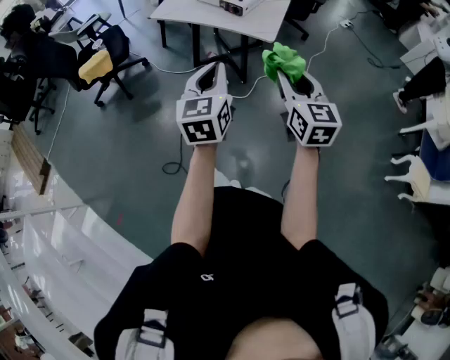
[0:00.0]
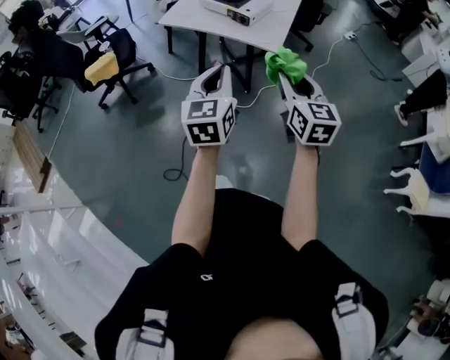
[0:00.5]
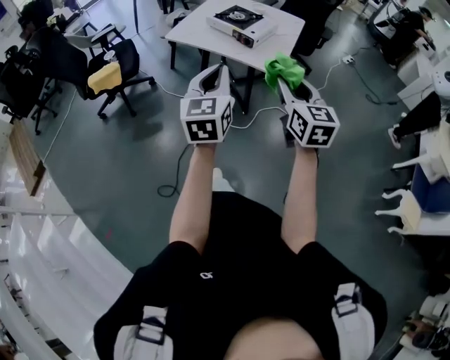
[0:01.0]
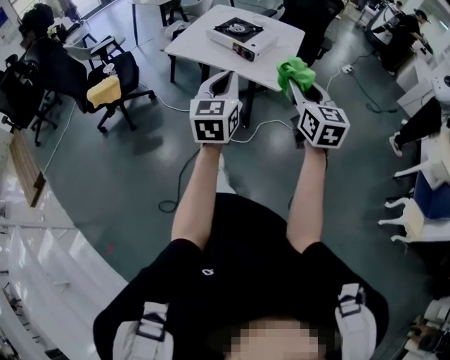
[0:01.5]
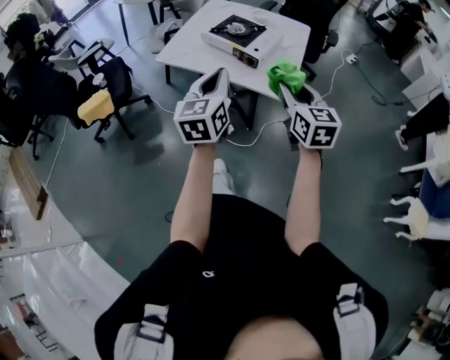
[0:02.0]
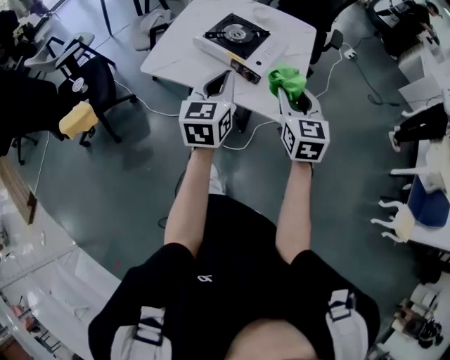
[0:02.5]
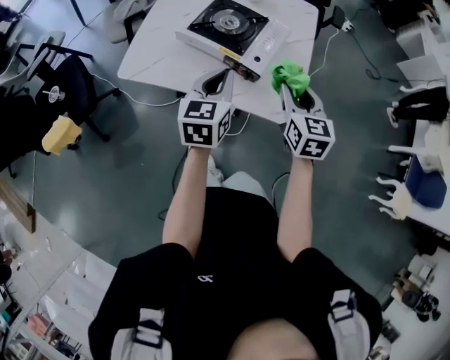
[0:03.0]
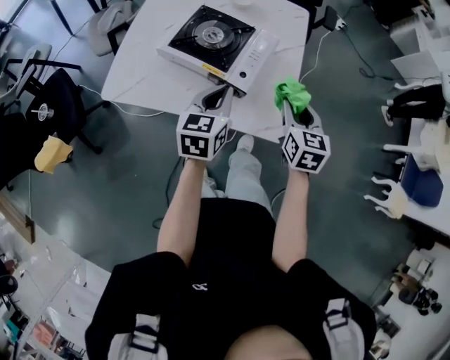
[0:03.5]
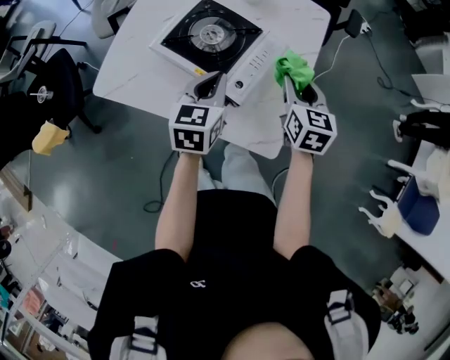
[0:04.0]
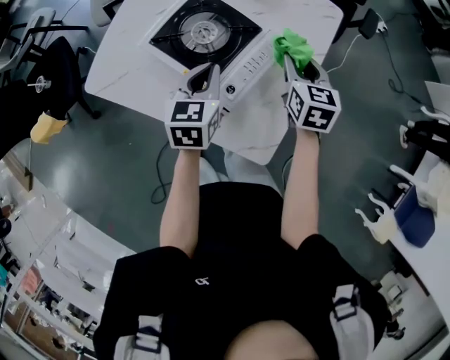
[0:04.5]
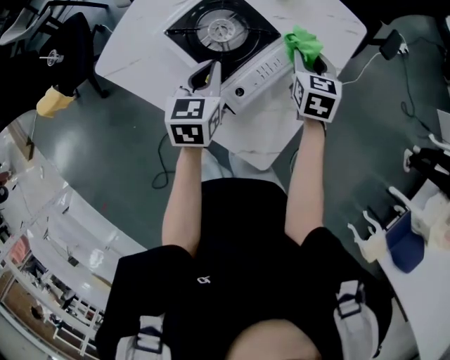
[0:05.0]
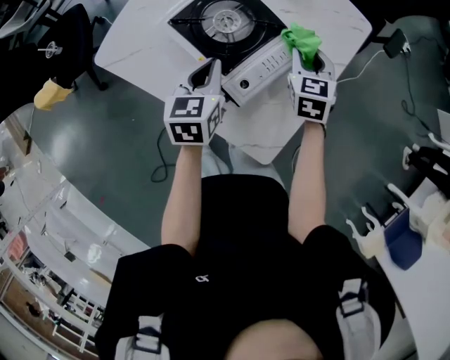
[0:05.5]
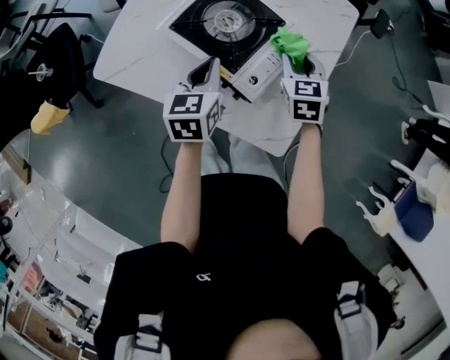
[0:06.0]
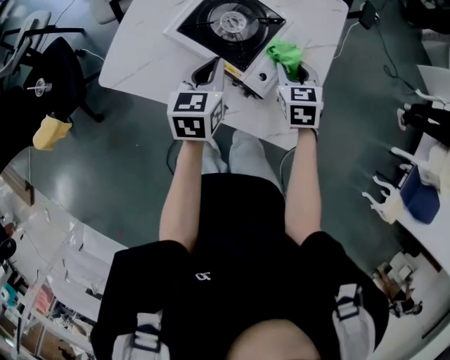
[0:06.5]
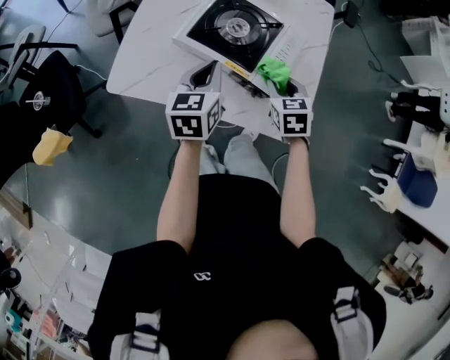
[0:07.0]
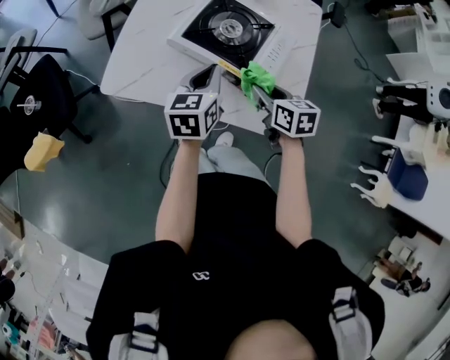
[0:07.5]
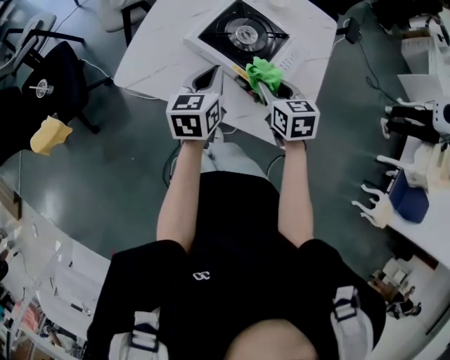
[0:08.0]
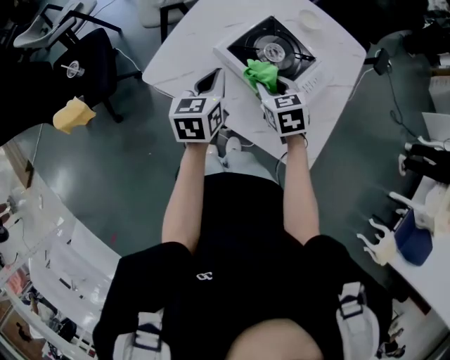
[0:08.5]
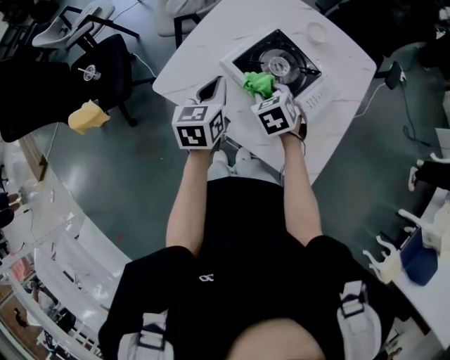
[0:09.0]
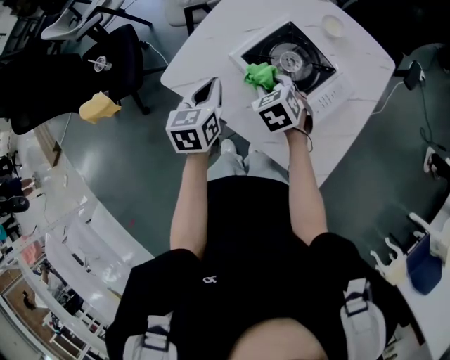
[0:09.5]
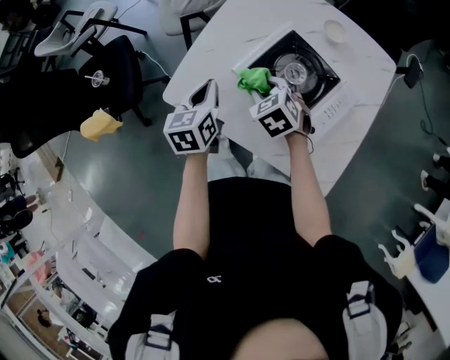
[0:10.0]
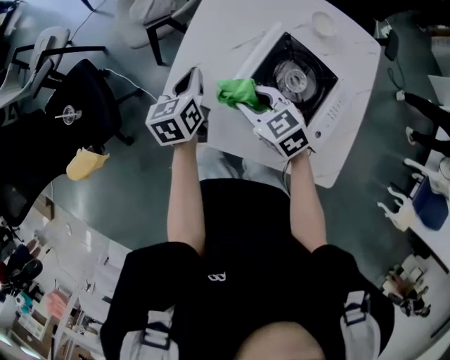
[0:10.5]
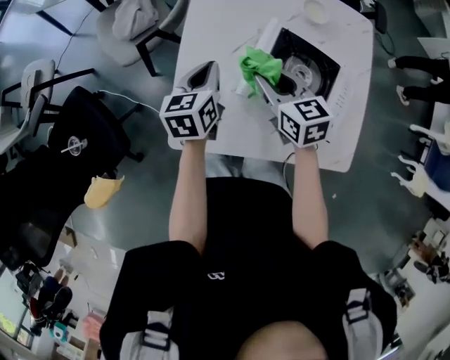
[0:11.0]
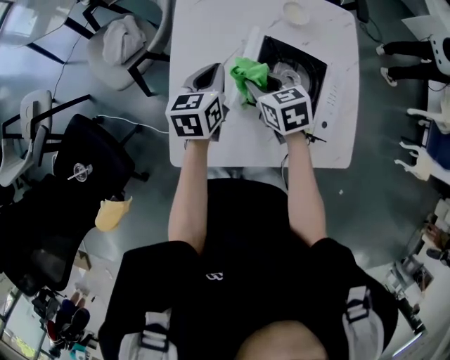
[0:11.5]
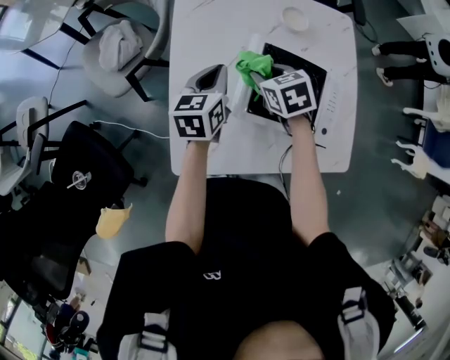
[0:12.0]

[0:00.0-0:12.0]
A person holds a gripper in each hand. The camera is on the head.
0:00.0 to 0:02.0: Both grippers travel together forward, some 25 cm.
0:02.0 to 0:04.0: The right gripper is displaced forward by some 40 cm, and rotates some 20 degrees. Meanwhile the left gripper heads forward and downward, covering approximately 40 cm, and swivels about 30 degrees.
0:04.0 to 0:06.0: The left gripper travels to the left by about 5 cm, while the right gripper moves downward, forward and to the left, roughly 10 cm, and rotates about 20 degrees.
0:06.0 to 0:08.0: The right gripper moves backward and to the left, some 15 cm; the left gripper is displaced to the left by approximately 5 cm.
0:08.0 to 0:10.0: The grippers both shift to the left and forward by roughly 15 cm. The right gripper changes its angle by about 30 degrees.
0:10.0 to 0:12.0: The right gripper shifts by some 15 cm, and turns by roughly 40 degrees. The left gripper moves some 20 cm, and rotates approximately 40 degrees.

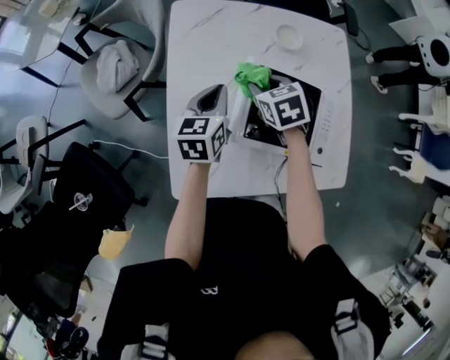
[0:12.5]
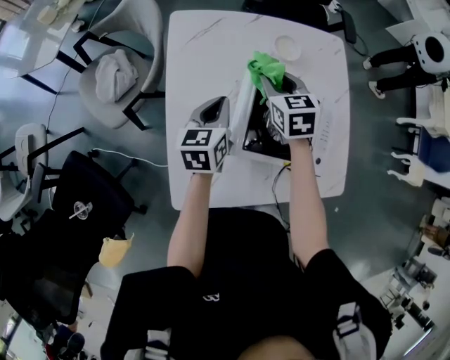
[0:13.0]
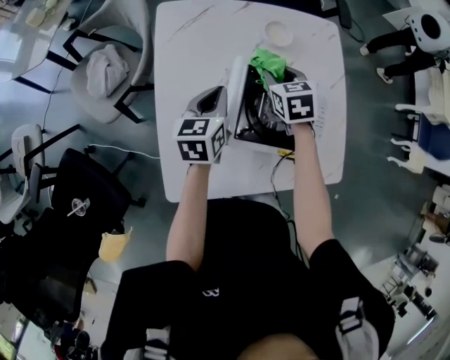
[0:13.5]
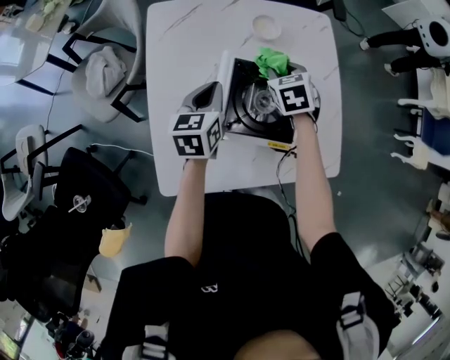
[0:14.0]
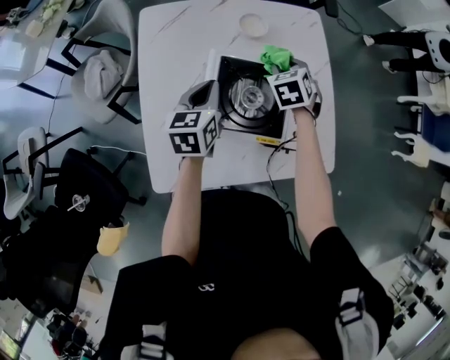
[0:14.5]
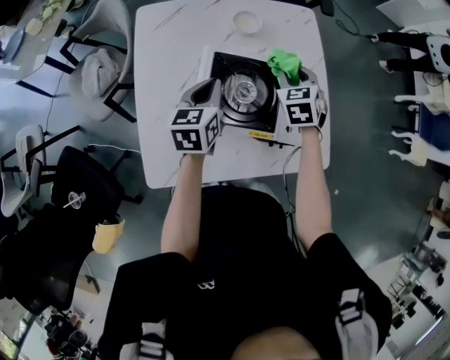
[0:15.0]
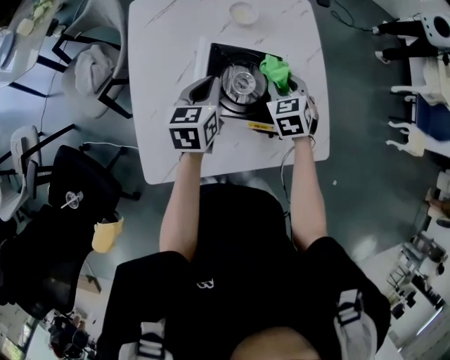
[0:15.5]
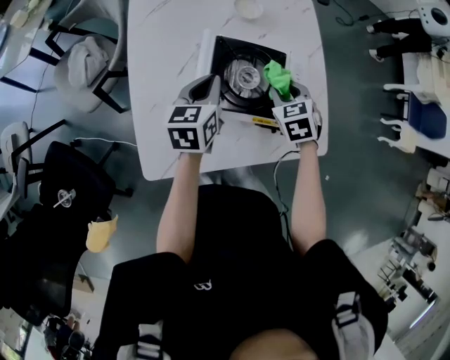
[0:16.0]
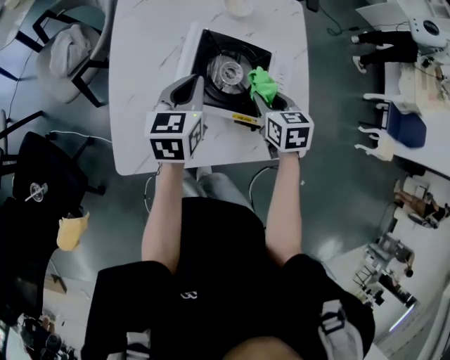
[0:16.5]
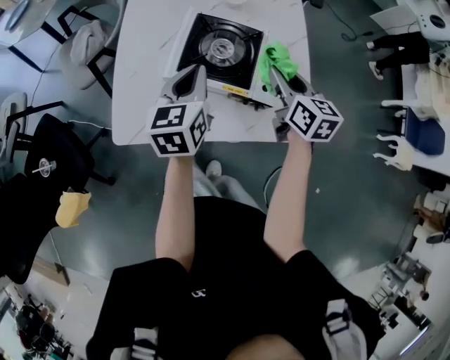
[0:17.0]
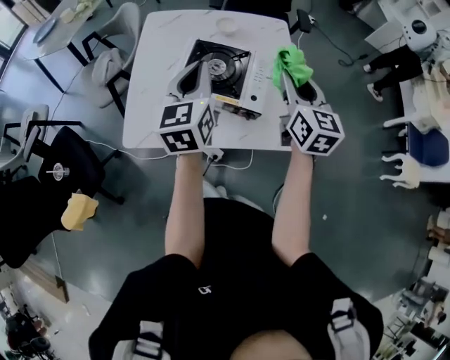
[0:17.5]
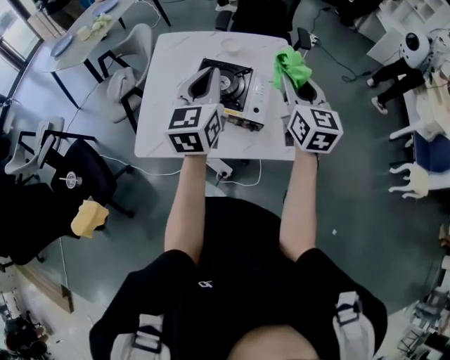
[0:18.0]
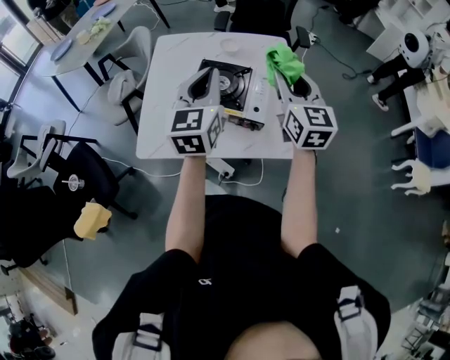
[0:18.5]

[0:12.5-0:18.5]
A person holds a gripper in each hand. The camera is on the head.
0:12.5 to 0:14.5: The right gripper goes approximately 20 cm to the right, and turns by about 20 degrees; the left gripper heads to the right, covering roughly 10 cm.
0:14.5 to 0:16.5: The right gripper moves backward, approximately 15 cm, and rotates approximately 20 degrees, while the left gripper shifts roughly 5 cm backward.
0:16.5 to 0:18.5: The left gripper moves upward and backward, roughly 25 cm, and turns by some 30 degrees. The right gripper shifts about 25 cm upward, and angles its fingers upward, by about 50 degrees.

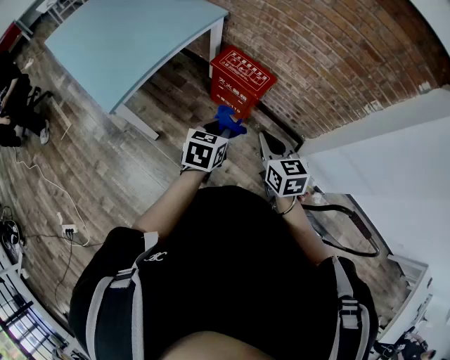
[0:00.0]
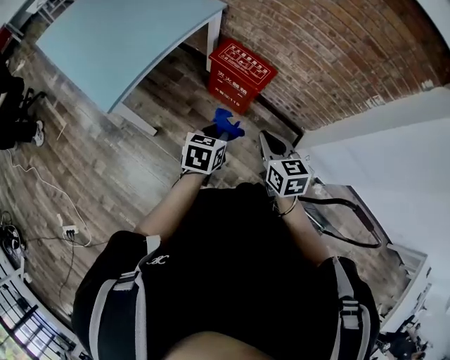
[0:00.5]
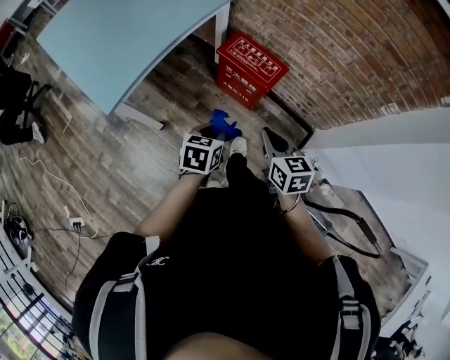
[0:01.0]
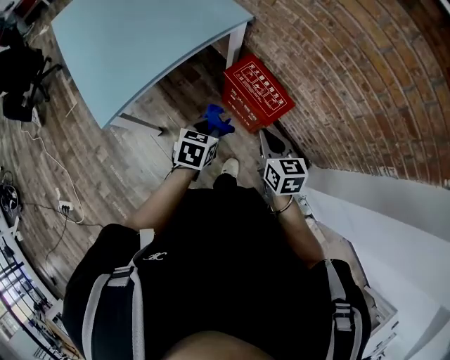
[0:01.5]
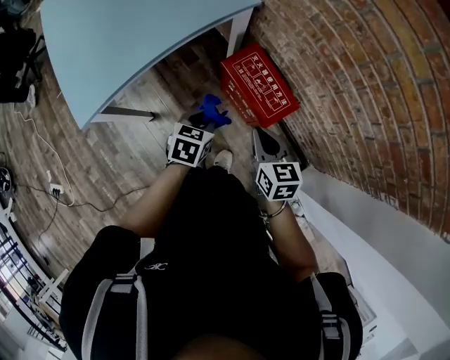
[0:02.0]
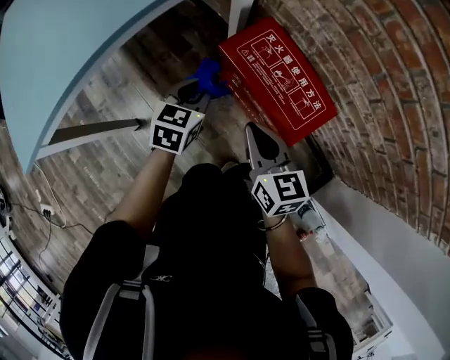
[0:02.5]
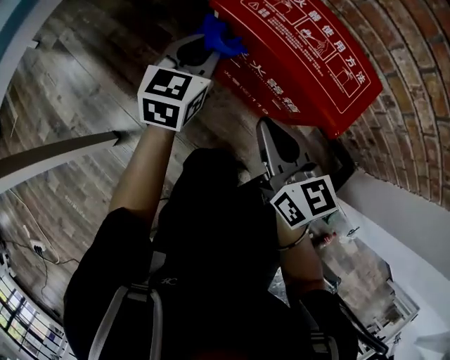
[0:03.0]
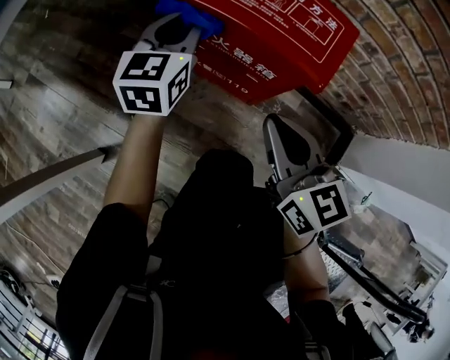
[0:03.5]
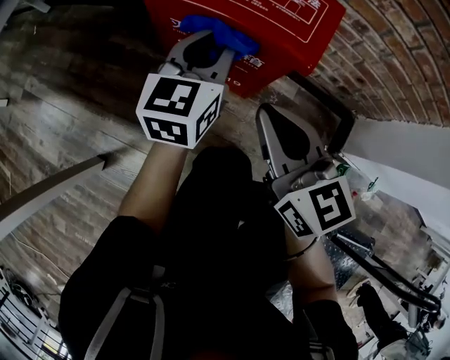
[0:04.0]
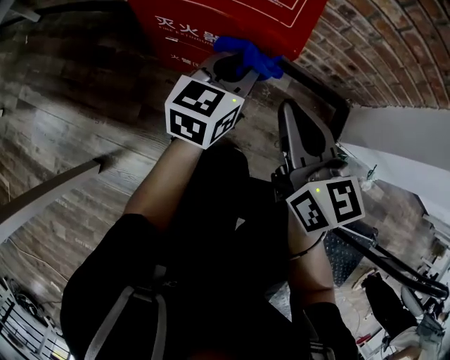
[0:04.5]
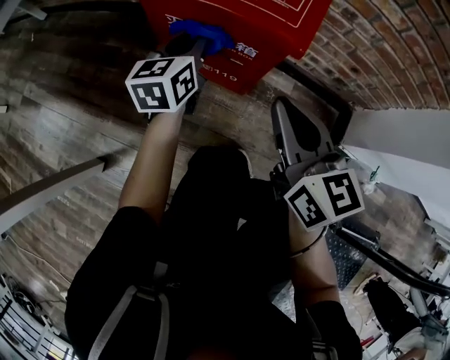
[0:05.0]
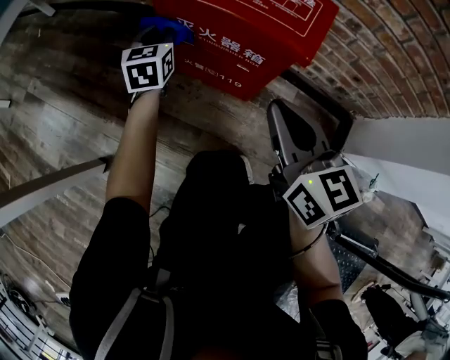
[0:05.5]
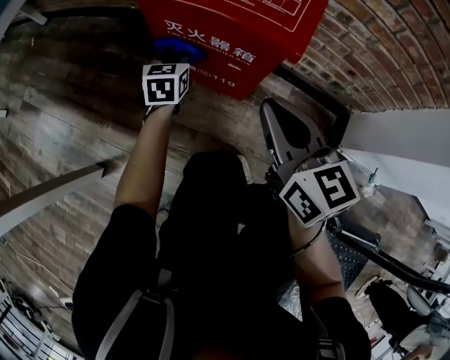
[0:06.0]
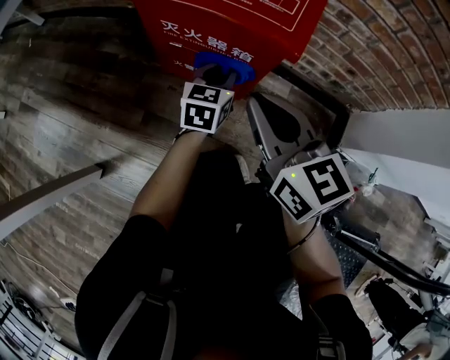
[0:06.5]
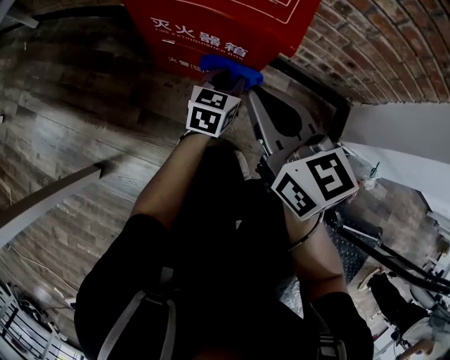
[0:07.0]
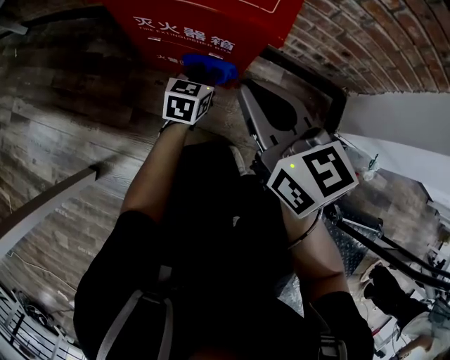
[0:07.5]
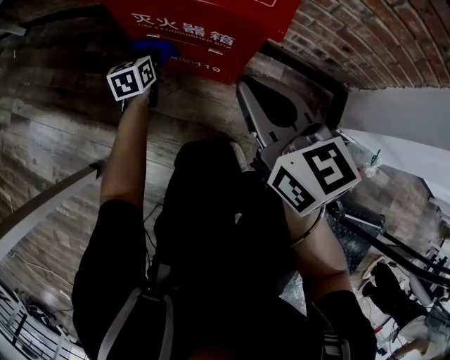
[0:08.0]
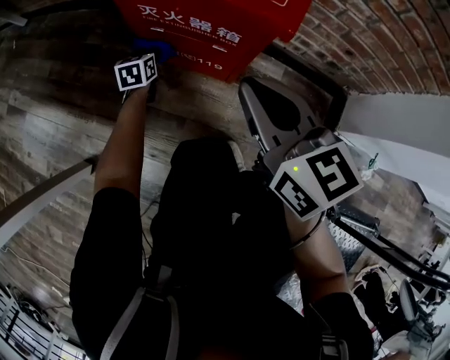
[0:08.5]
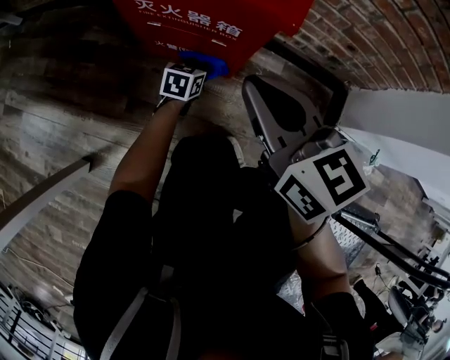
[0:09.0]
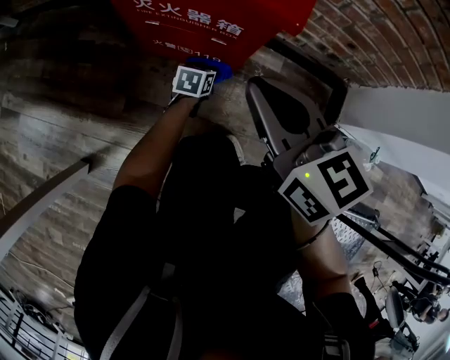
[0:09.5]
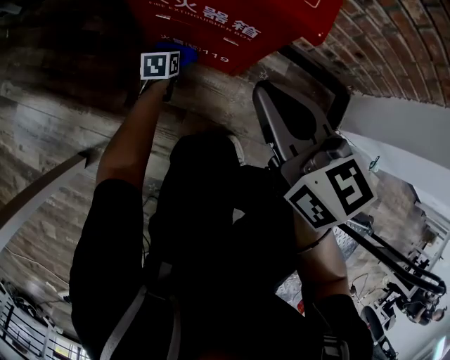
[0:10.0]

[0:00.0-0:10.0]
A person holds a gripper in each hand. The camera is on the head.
0:00.0 to 0:02.0: The two grippers go about 30 cm forward and downward.
0:02.0 to 0:04.0: The right gripper moves downward, some 30 cm, and changes its angle by approximately 30 degrees. The left gripper is displaced downward and to the right by approximately 30 cm, and tilts its fingers about 40 degrees upward.
0:04.0 to 0:06.0: The left gripper swings left and right, approximately 20 cm each way, with 2 reversals, and turns by some 20 degrees.
0:06.0 to 0:08.0: The left gripper heads downward, covering about 5 cm, and reaches some 15 cm to the right, then returns.
0:08.0 to 0:10.0: The left gripper goes about 15 cm downward, and travels to the right and back again, roughly 20 cm each way.
